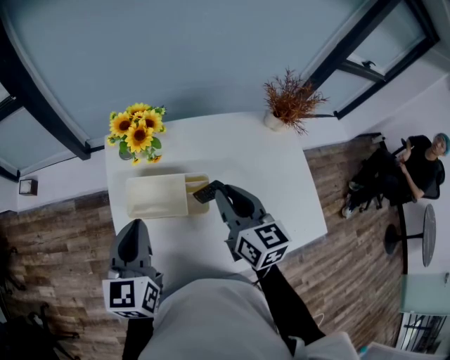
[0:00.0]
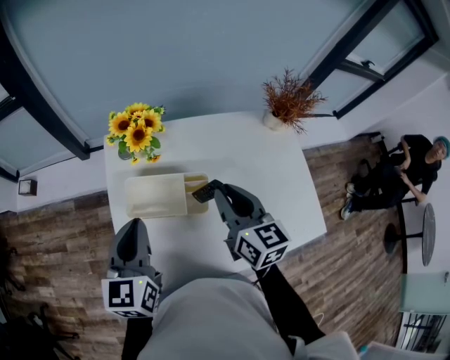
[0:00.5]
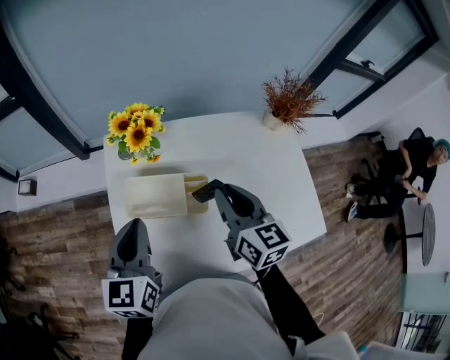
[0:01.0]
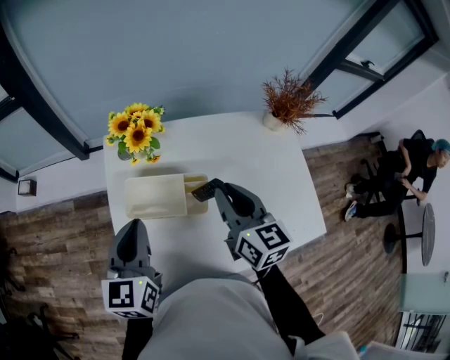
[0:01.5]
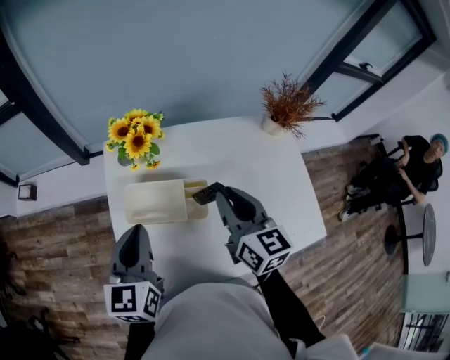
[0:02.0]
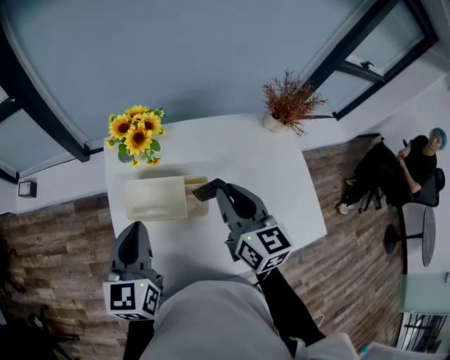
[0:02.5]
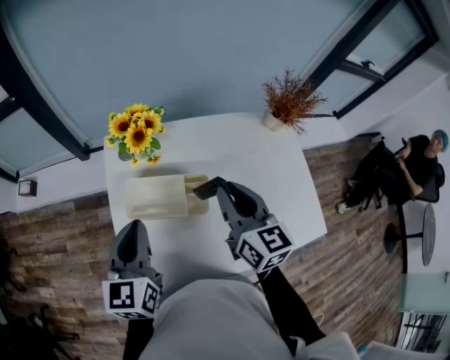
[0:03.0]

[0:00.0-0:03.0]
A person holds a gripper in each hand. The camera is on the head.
0:00.0 to 0:01.5: The two grippers keep their place.
0:01.5 to 0:03.0: Neither gripper changes place.

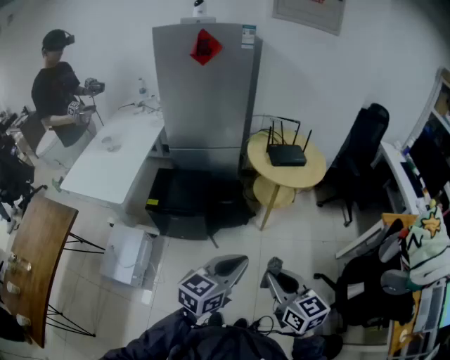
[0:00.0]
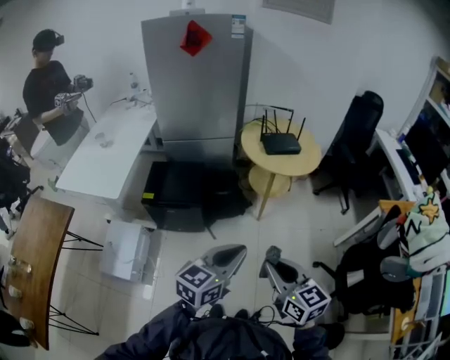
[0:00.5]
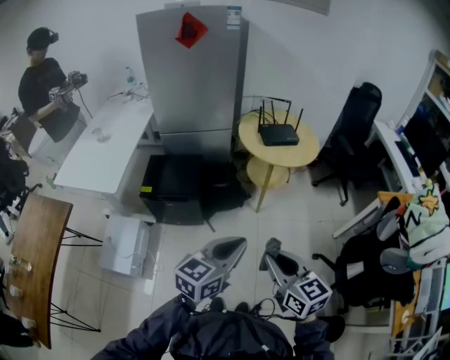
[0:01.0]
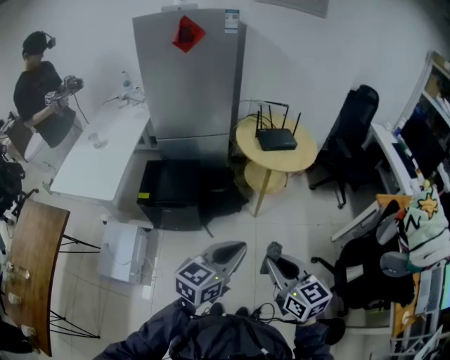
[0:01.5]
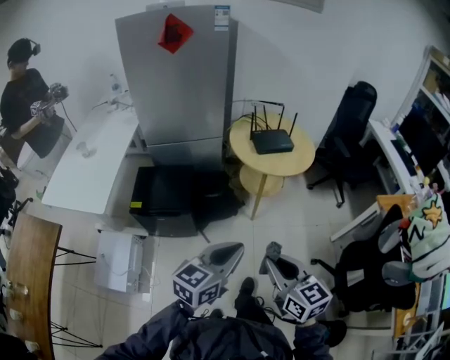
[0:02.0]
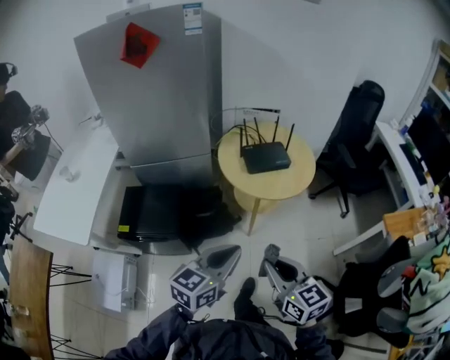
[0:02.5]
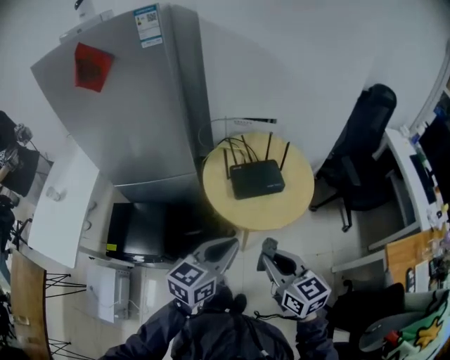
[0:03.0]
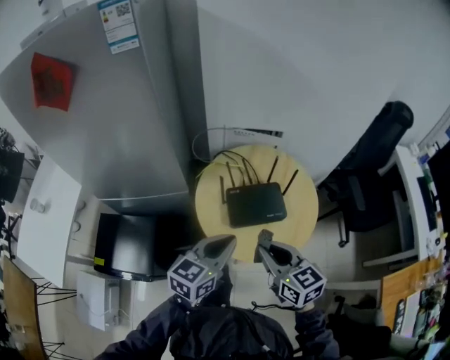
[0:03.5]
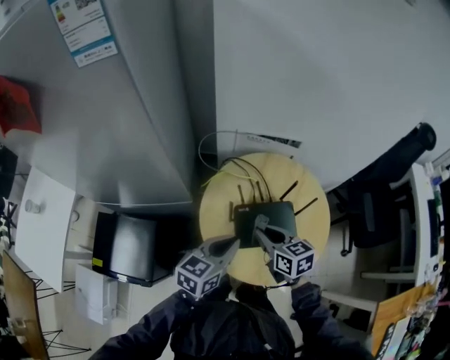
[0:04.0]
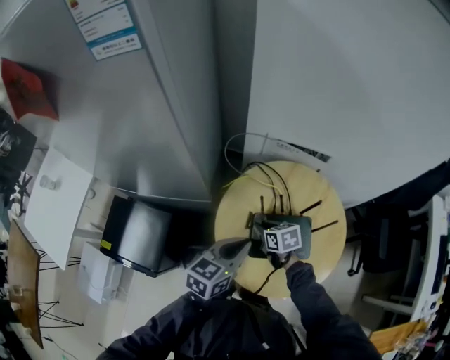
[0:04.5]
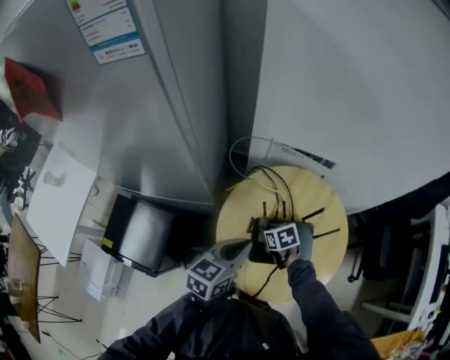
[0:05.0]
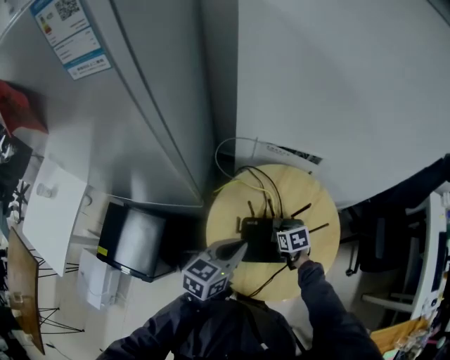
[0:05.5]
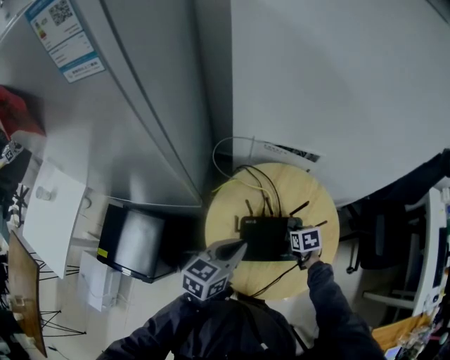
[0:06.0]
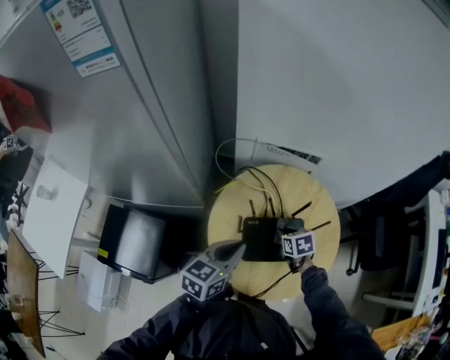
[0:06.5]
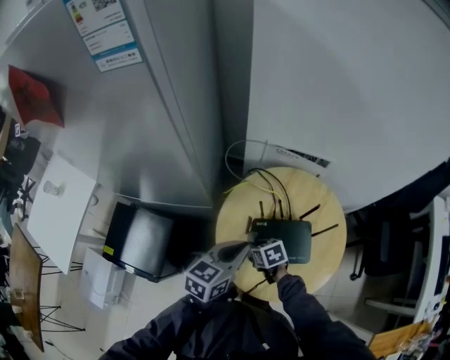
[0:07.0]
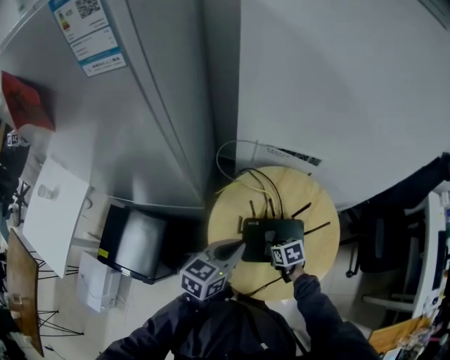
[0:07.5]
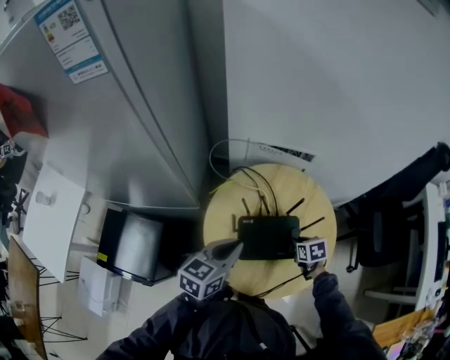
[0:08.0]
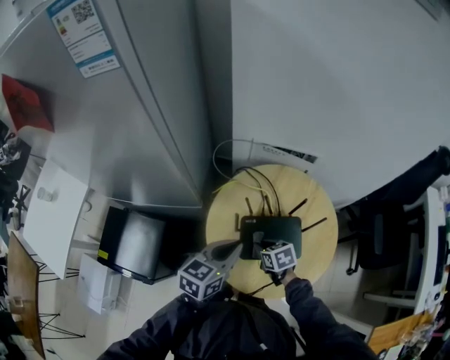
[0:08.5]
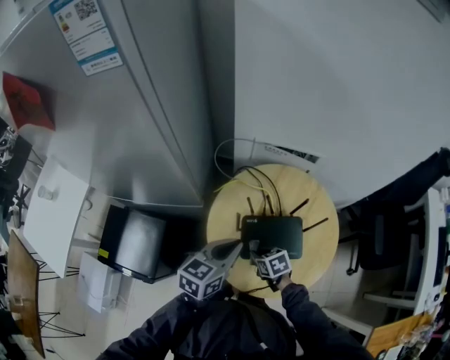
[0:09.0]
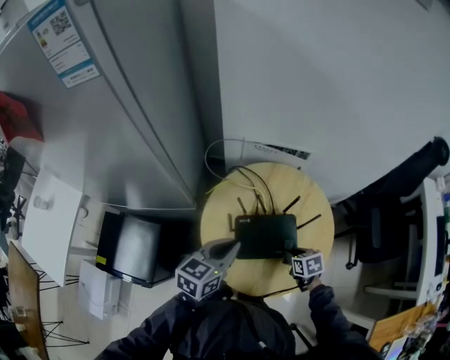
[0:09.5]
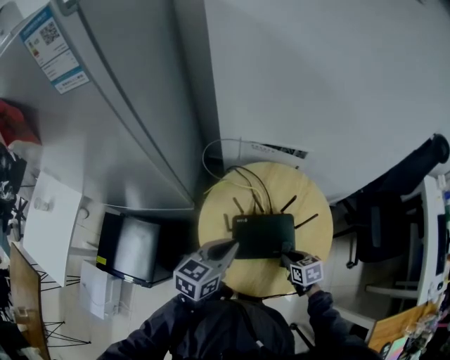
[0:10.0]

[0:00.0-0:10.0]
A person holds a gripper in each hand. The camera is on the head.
0:00.0 to 0:02.0: The two grippers go some 10 cm forward.
0:02.0 to 0:04.0: The two grippers travel together, forward, about 80 cm. The right gripper changes its angle by approximately 20 degrees.
0:04.0 to 0:06.0: The right gripper is displaced downward, to the right and forward by approximately 25 cm, and tilts its fingers approximately 30 degrees downward.
0:06.0 to 0:08.0: The right gripper travels to the left and back again, about 20 cm each way.
0:08.0 to 0:10.0: The right gripper heads backward, covering roughly 5 cm, and moves roughly 20 cm to the left and comes back.

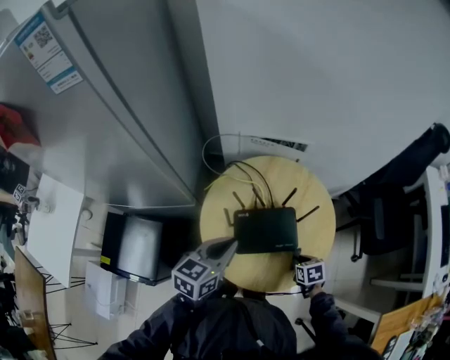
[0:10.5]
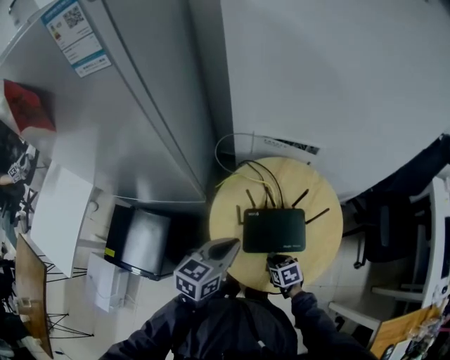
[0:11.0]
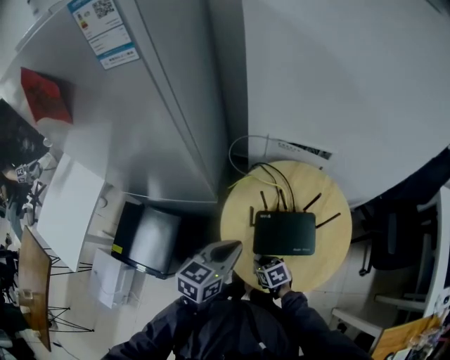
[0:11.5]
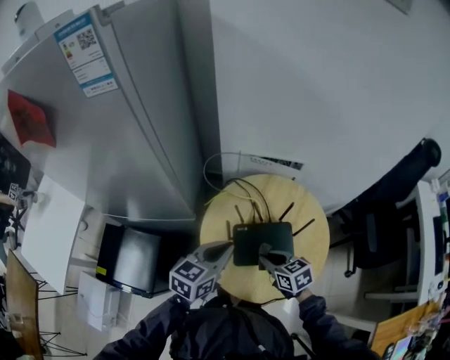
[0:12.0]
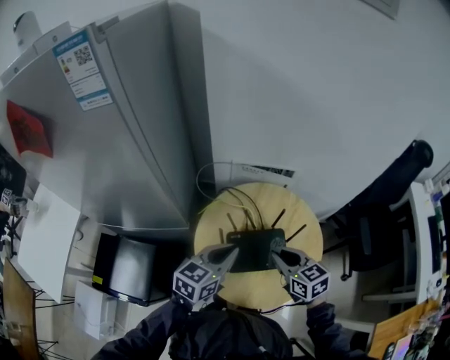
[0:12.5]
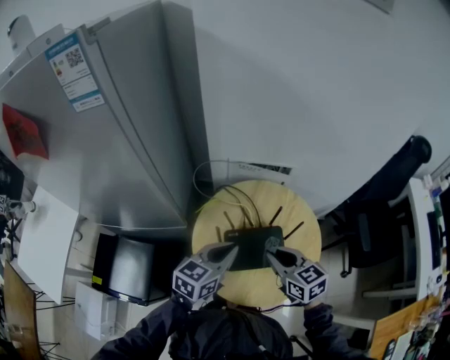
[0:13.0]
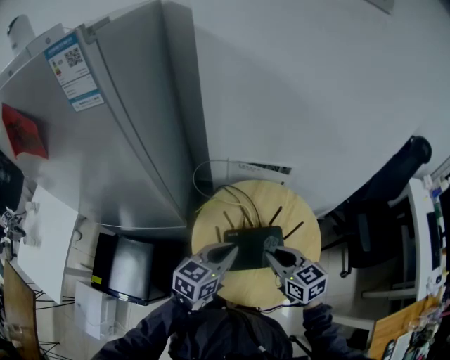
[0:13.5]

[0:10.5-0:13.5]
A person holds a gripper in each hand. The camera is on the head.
0:10.5 to 0:12.0: The right gripper is displaced to the left, upward and forward by about 20 cm, and changes its angle by about 30 degrees.
0:12.0 to 0:13.5: The right gripper shifts approximately 10 cm upward.

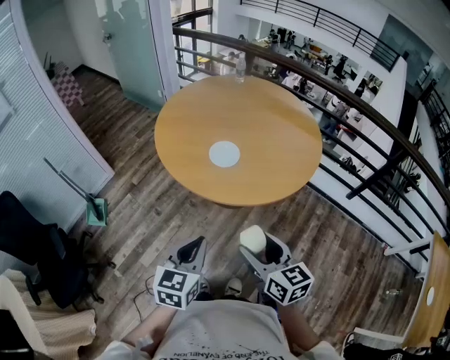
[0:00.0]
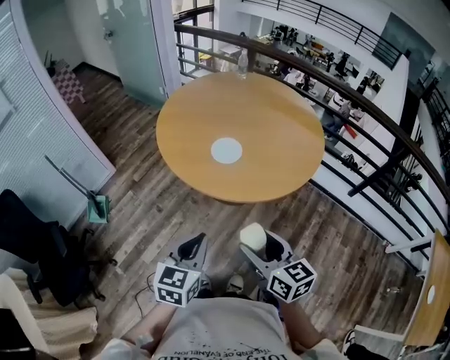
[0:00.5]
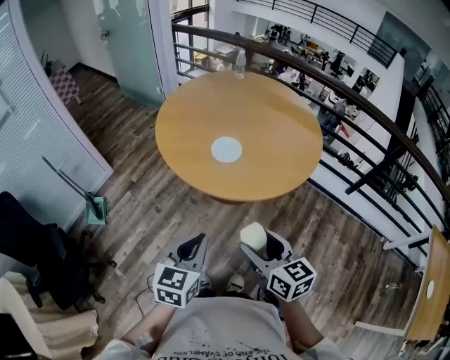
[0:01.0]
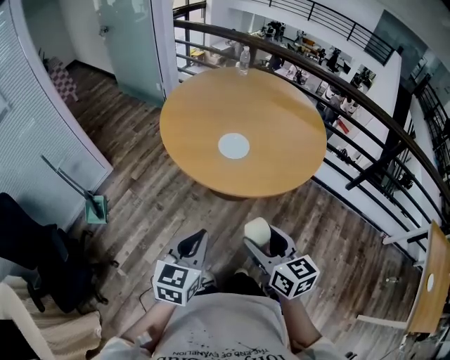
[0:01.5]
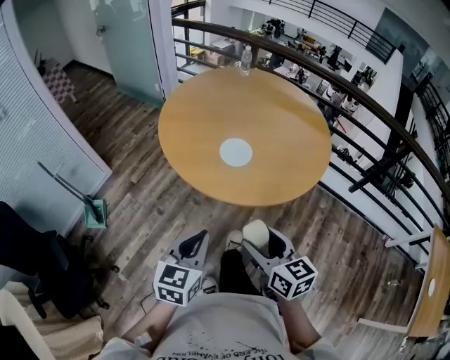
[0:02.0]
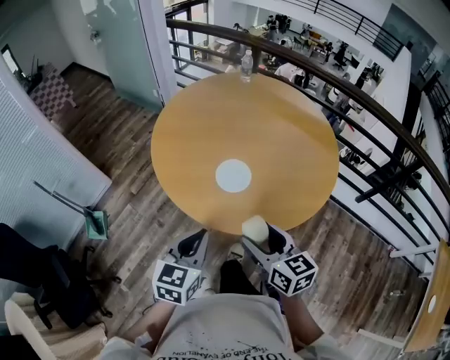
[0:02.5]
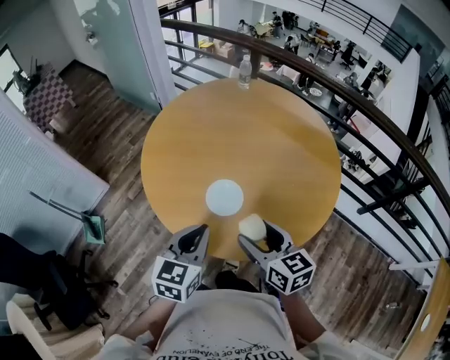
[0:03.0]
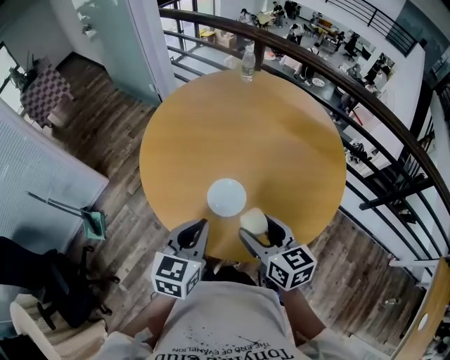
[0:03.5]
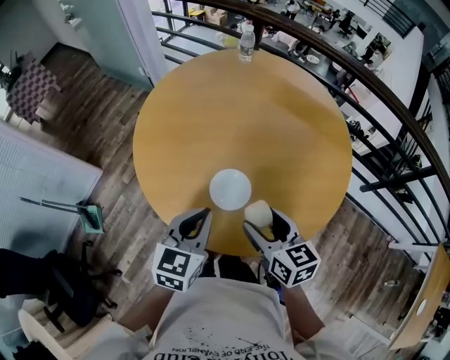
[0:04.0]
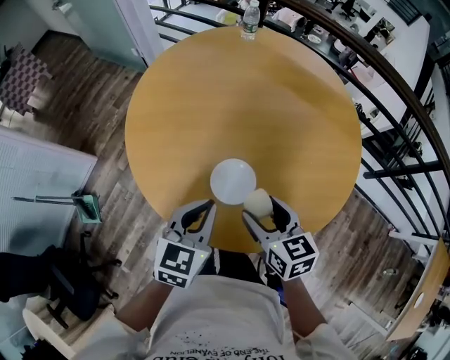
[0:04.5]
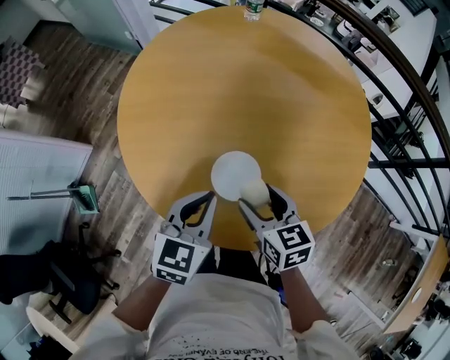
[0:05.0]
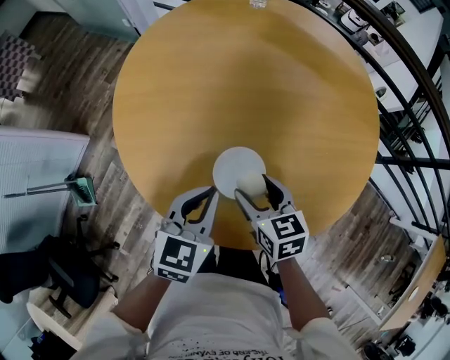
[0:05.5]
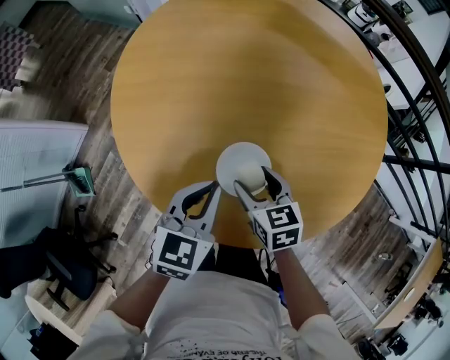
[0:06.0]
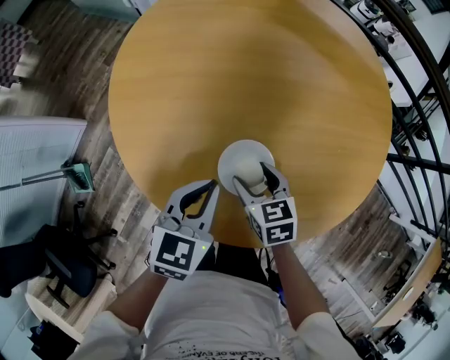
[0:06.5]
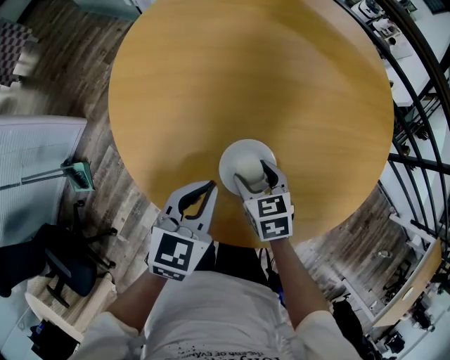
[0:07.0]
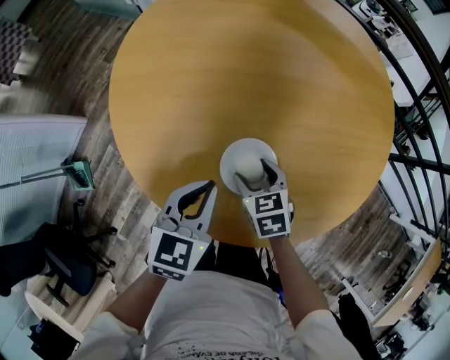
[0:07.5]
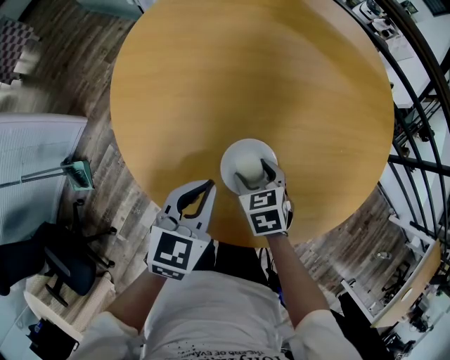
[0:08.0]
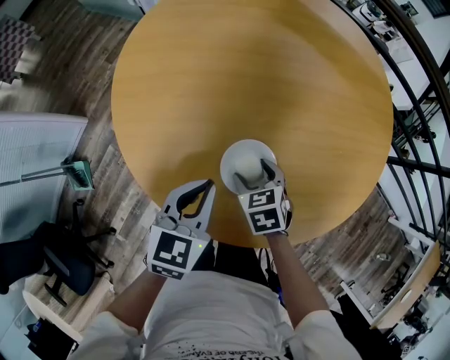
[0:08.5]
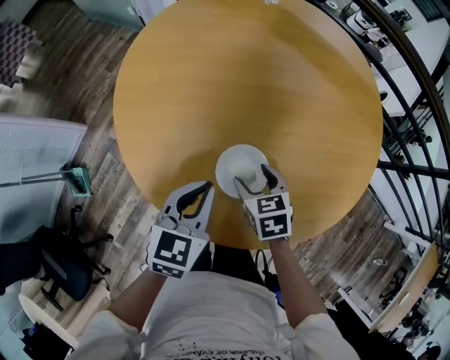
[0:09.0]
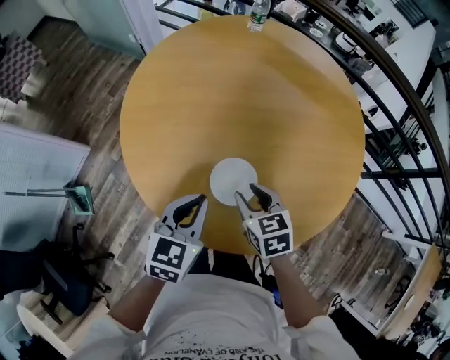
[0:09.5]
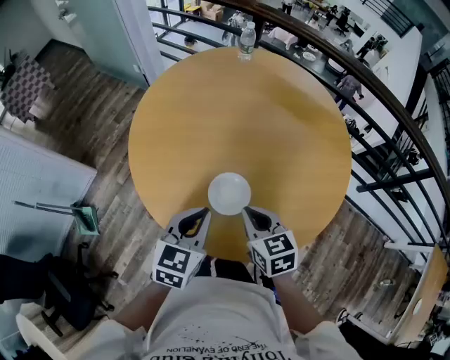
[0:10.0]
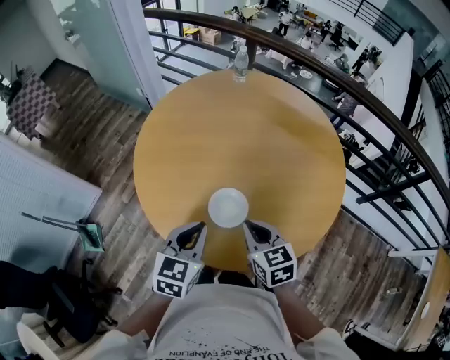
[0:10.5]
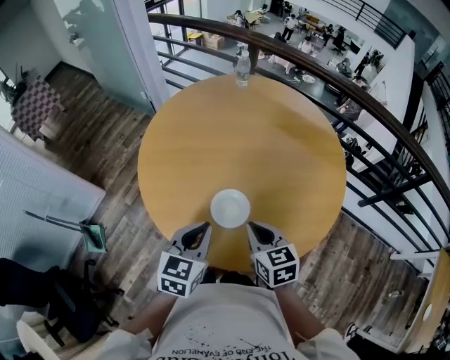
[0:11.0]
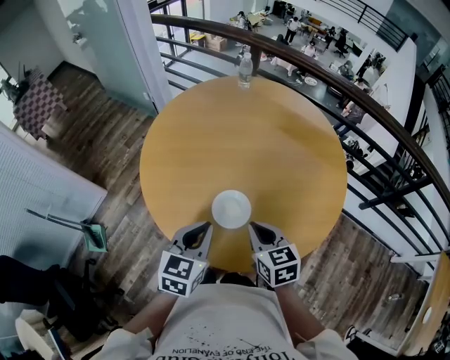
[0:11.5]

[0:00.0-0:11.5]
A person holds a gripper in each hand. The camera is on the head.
0:00.0 to 0:02.0: The left gripper travels to the left and forward by about 10 cm, while the right gripper heads to the left, covering some 5 cm.
0:02.0 to 0:04.0: Both grippers move forward, about 30 cm.
0:04.0 to 0:06.0: The two grippers go roughly 20 cm downward and forward.
0:06.0 to 0:07.5: The right gripper heads downward, covering roughly 5 cm.
0:07.5 to 0:09.5: The right gripper goes about 10 cm upward, and closes; the left gripper heads upward, covering some 5 cm.
0:09.5 to 0:11.5: The two grippers go some 10 cm upward and backward. The right gripper closes up.
